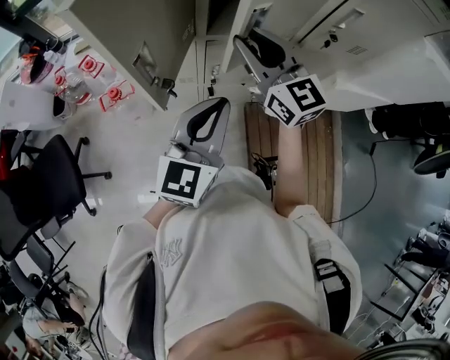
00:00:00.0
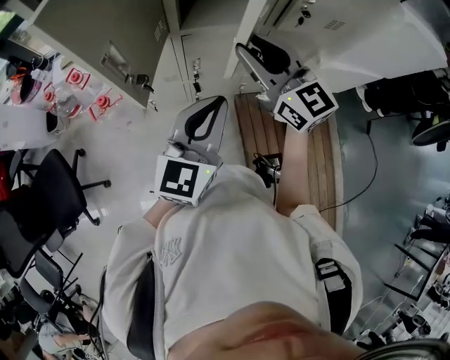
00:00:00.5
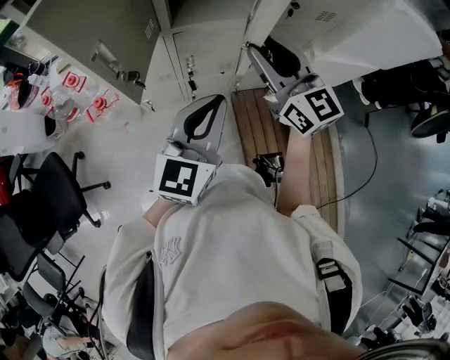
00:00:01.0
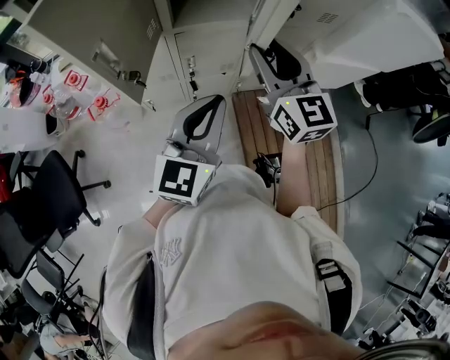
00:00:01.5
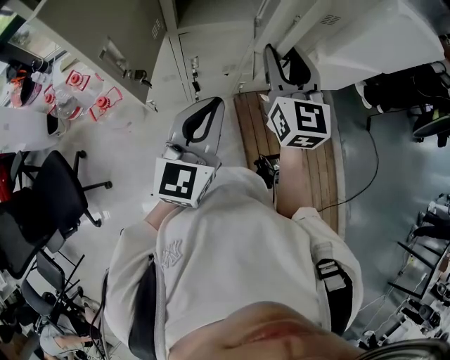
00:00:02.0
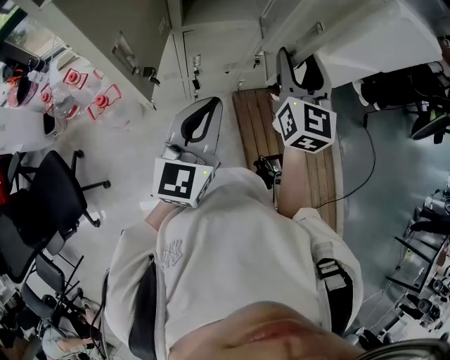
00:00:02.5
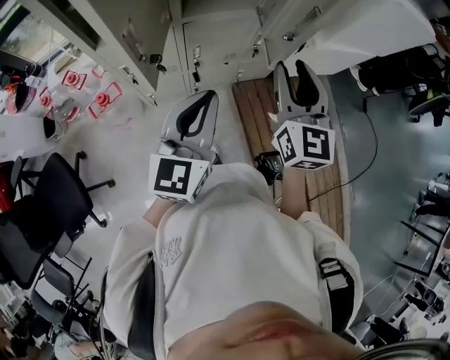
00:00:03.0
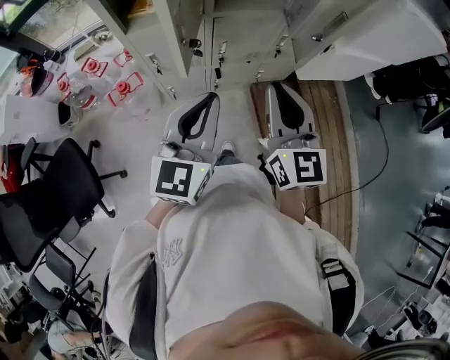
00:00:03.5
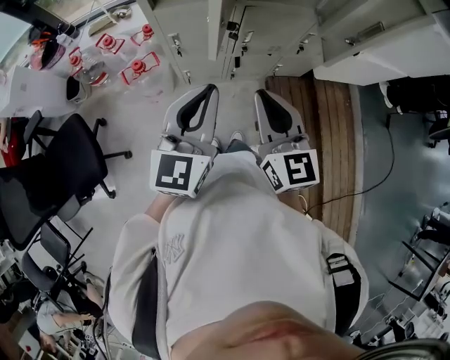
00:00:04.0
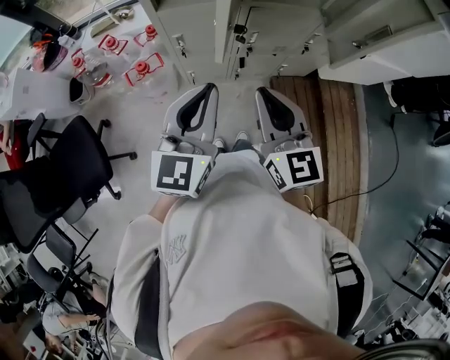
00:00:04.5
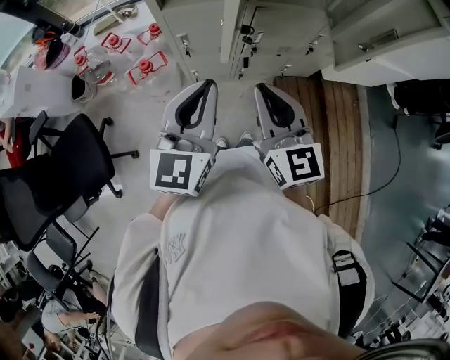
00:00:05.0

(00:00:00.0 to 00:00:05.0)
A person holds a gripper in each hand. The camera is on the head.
00:00:00.0 - 00:00:02.5: The right gripper is displaced to the right by some 15 cm, turns by roughly 40 degrees, and opens up.
00:00:02.5 - 00:00:05.0: The left gripper moves to the left, roughly 20 cm. Meanwhile the right gripper is displaced to the left and backward by some 30 cm, swivels roughly 30 degrees, and closes.

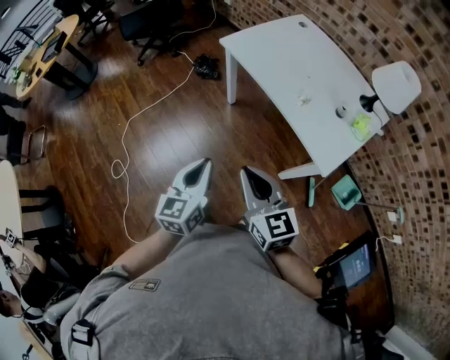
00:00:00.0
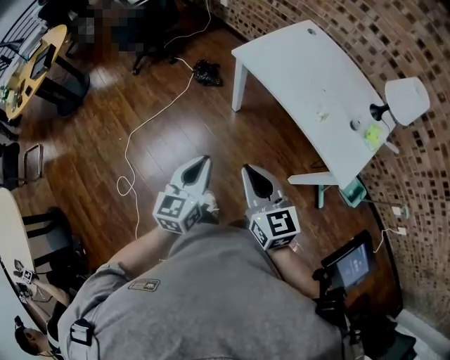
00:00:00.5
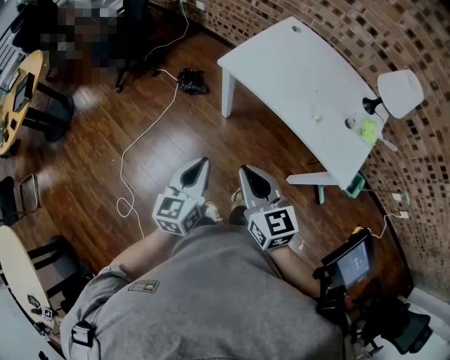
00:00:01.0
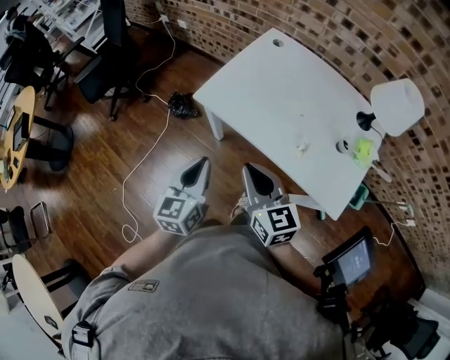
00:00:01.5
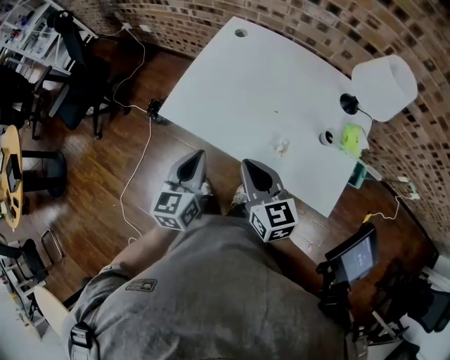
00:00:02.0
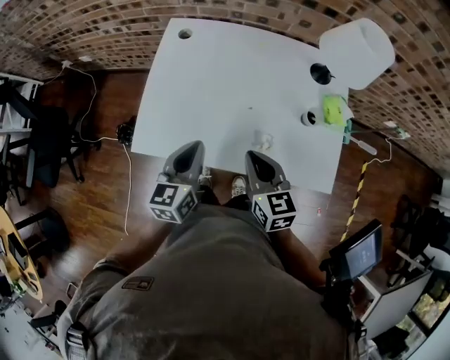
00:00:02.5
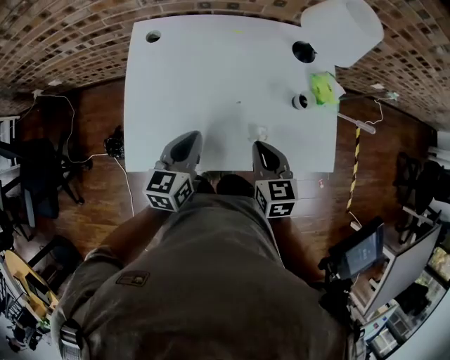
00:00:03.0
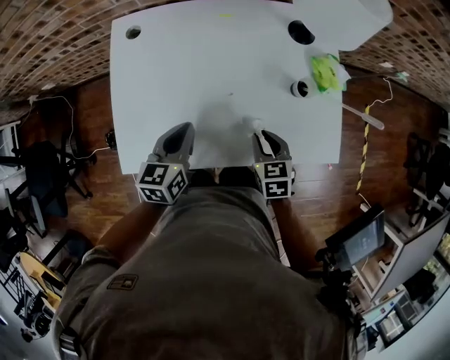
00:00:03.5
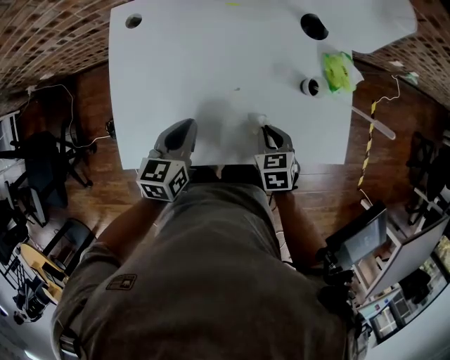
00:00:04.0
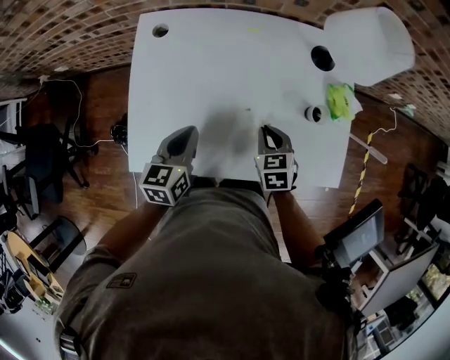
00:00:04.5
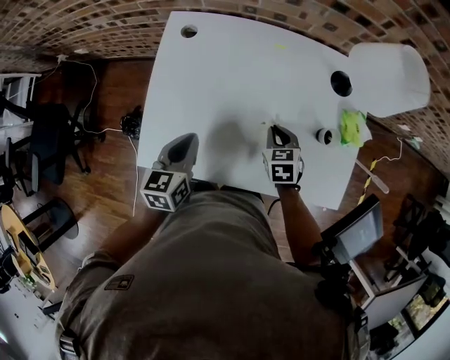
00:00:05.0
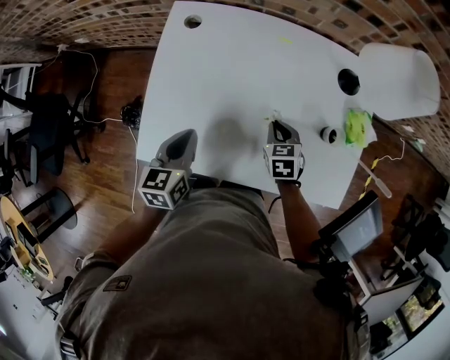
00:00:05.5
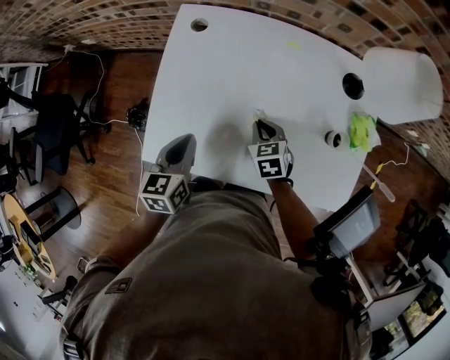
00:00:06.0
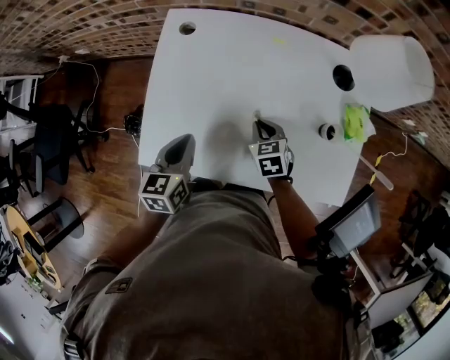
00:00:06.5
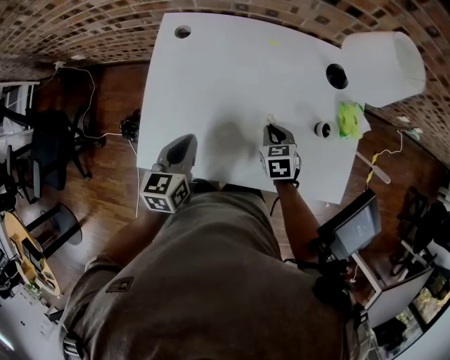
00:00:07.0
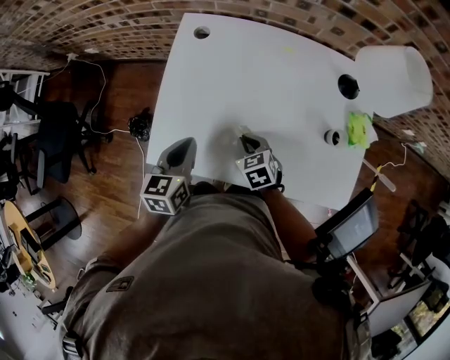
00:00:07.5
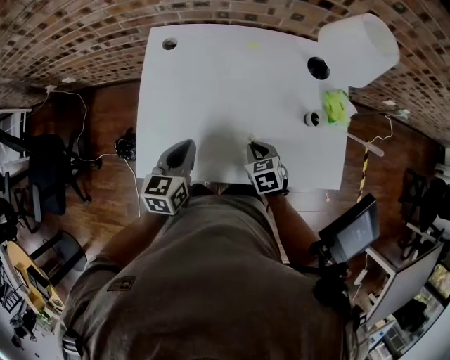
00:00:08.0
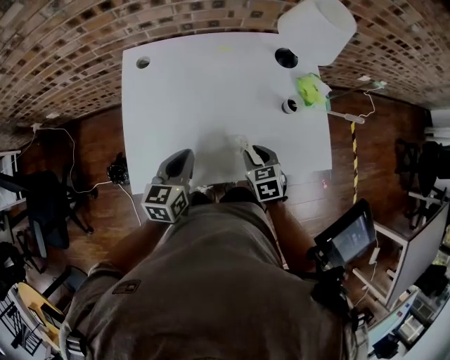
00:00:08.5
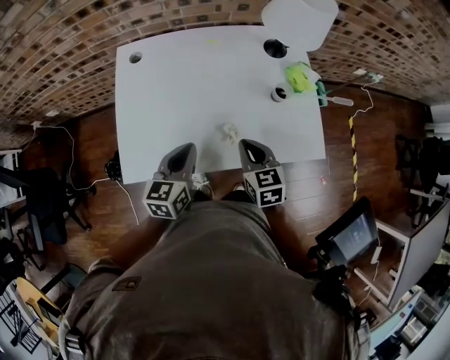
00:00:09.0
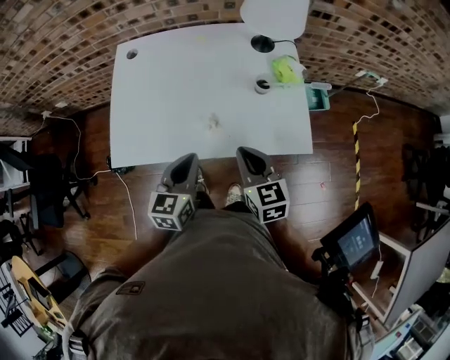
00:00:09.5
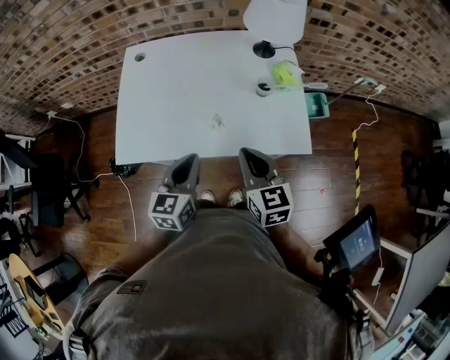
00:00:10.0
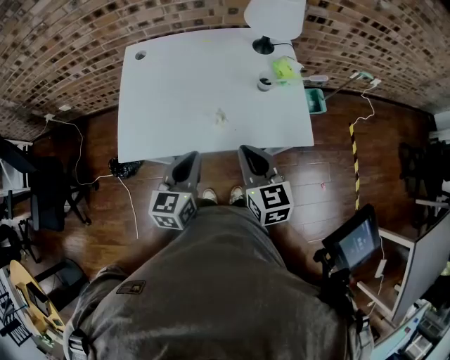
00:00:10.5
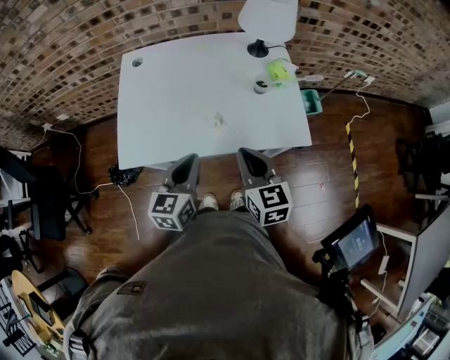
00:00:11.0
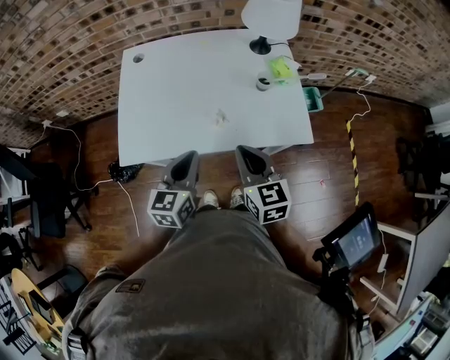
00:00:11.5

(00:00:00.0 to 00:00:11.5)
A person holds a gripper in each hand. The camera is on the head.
00:00:00.0 - 00:00:02.0: Both grippers move forward, some 35 cm. The right gripper swivels roughly 30 degrees. Meanwhile the left gripper turns by roughly 20 degrees.
00:00:02.0 - 00:00:04.0: The left gripper changes place by roughly 20 cm, and rotates roughly 40 degrees. Meanwhile the right gripper heads downward, covering approximately 20 cm, and tips its fingers downward by about 40 degrees.
00:00:04.0 - 00:00:06.0: The right gripper is displaced to the left and forward by some 15 cm. Meanwhile the left gripper goes roughly 10 cm to the left.
00:00:06.0 - 00:00:07.5: The right gripper moves to the left, about 5 cm.
00:00:07.5 - 00:00:09.5: The right gripper changes place by about 30 cm, turns by some 30 degrees, and opens, then closes again. The left gripper changes place by about 25 cm.
00:00:09.5 - 00:00:11.5: The left gripper shifts by roughly 5 cm. Meanwhile the right gripper ends up about 5 cm from where it was.

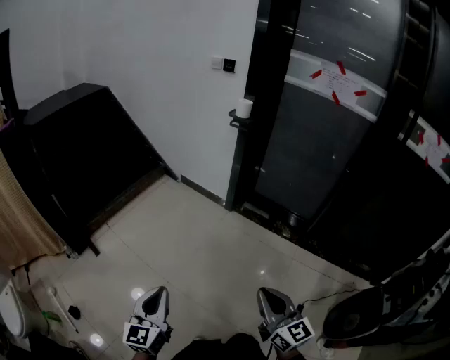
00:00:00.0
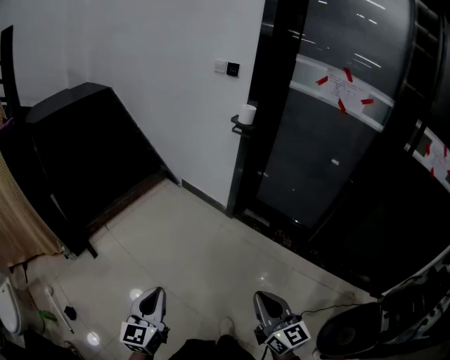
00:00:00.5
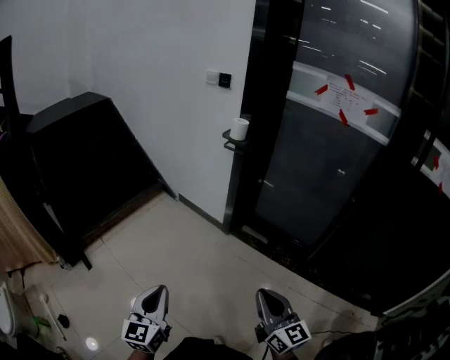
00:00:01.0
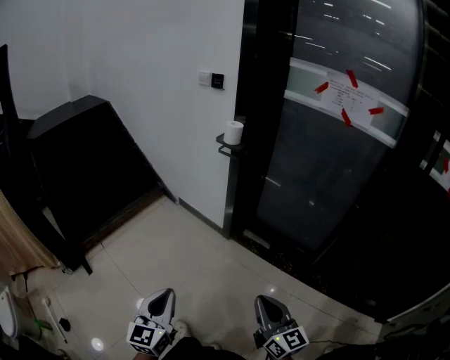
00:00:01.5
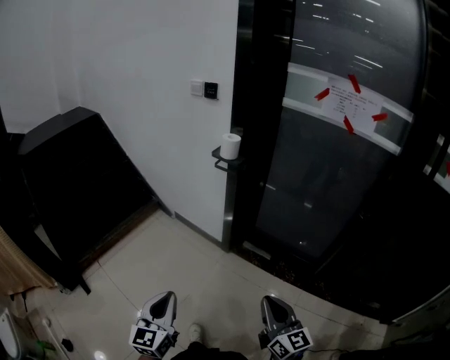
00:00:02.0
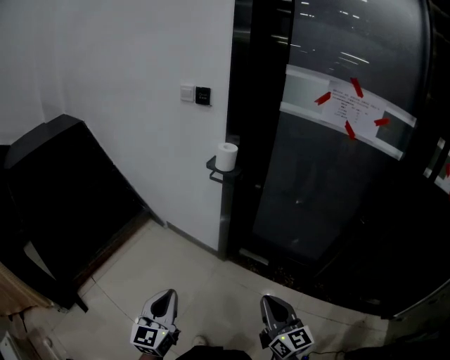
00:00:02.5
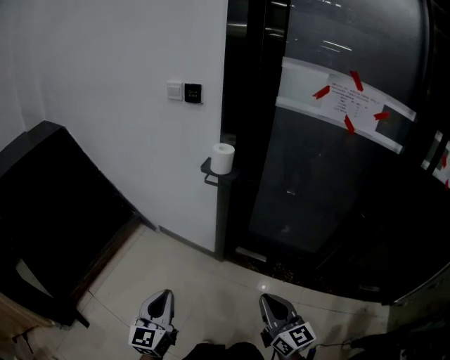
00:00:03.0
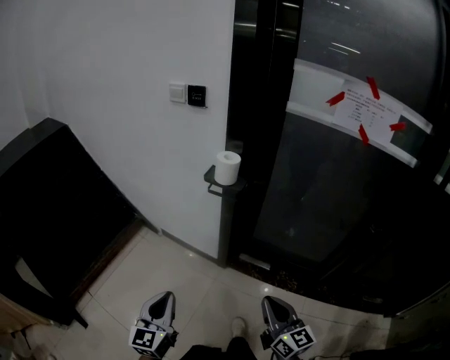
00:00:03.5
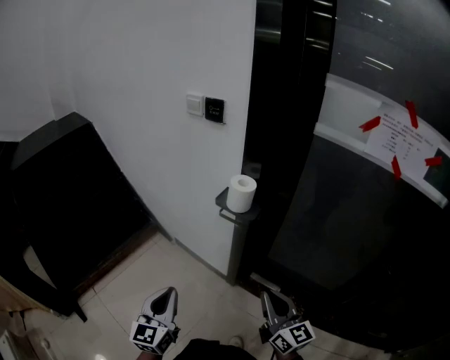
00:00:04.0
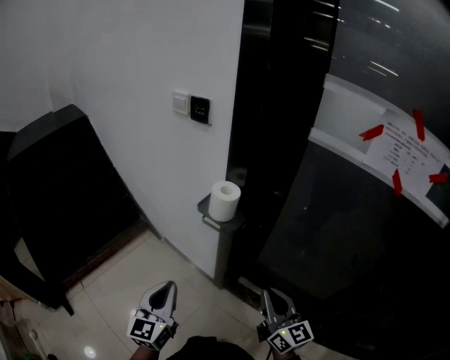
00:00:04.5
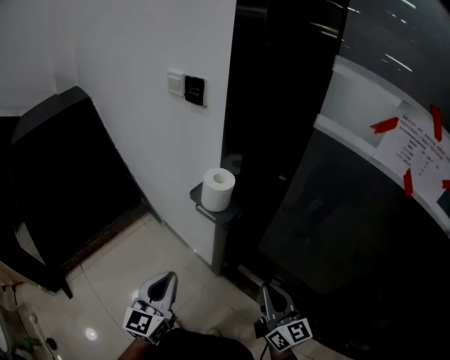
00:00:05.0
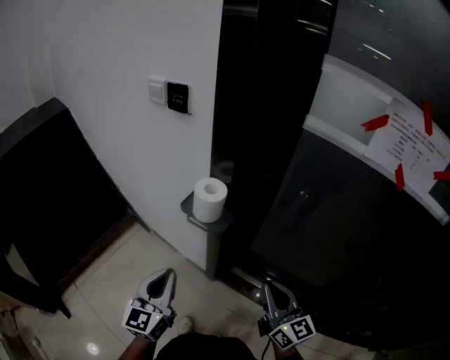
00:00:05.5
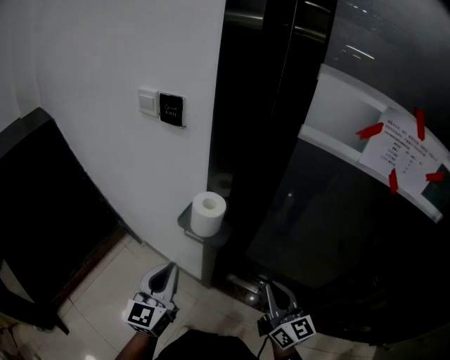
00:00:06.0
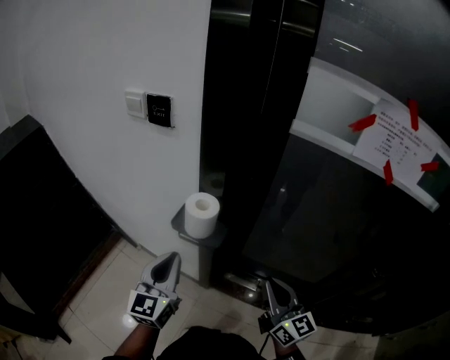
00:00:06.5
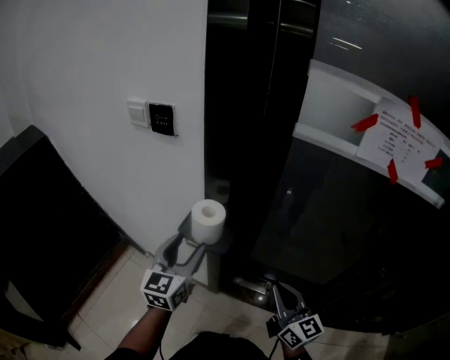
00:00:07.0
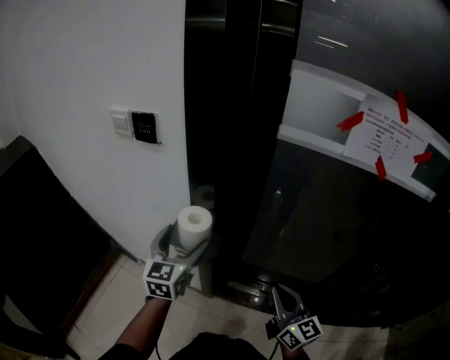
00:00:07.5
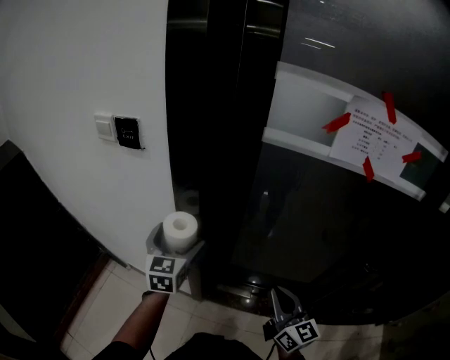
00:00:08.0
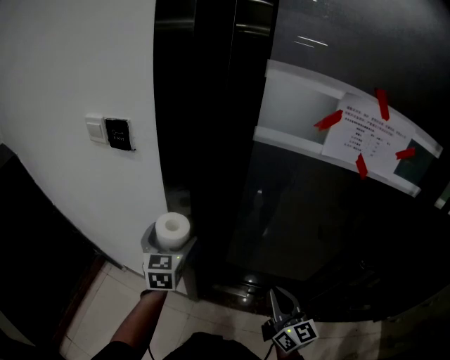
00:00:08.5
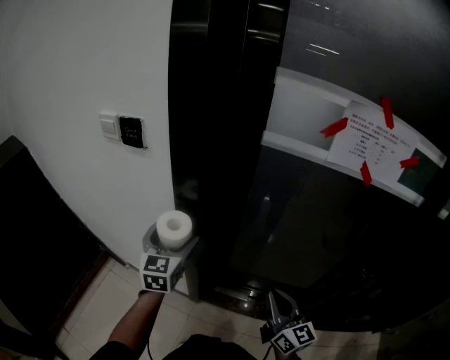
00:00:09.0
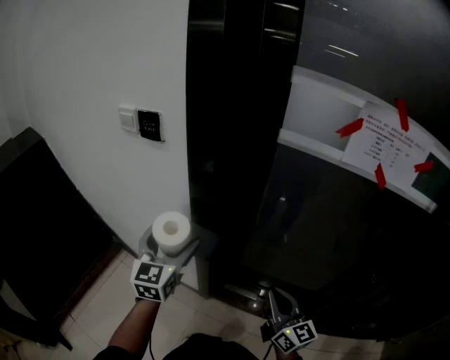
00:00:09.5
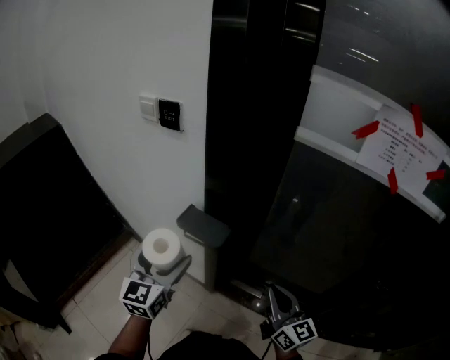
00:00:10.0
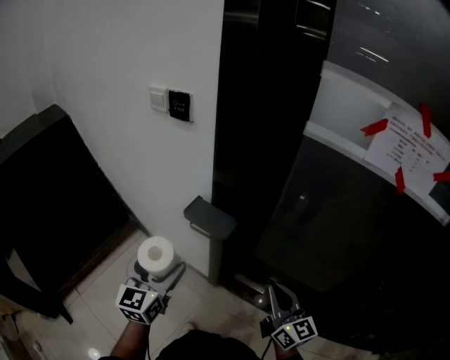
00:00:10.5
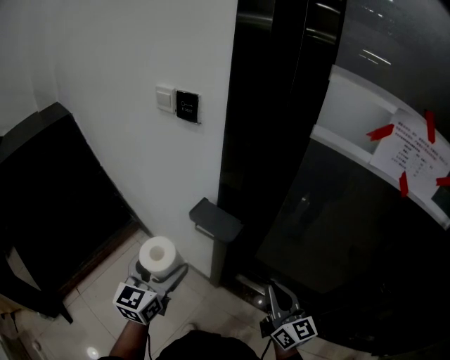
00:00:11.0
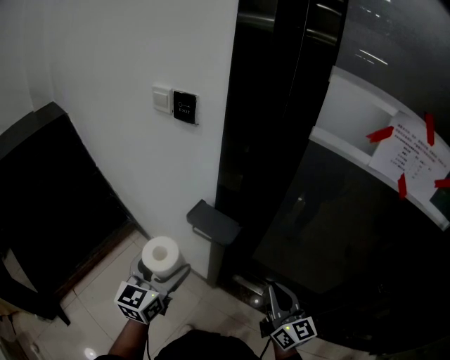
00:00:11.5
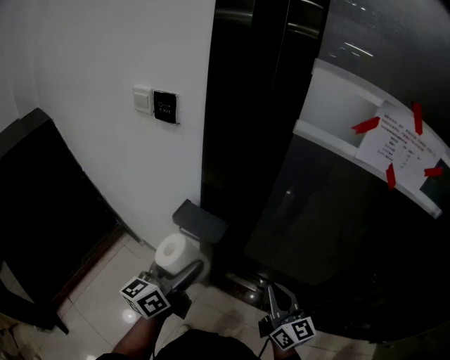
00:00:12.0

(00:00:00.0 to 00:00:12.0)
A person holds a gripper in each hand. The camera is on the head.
00:00:00.0 - 00:00:02.0: Both grippers move forward and to the right, about 35 cm.
00:00:02.0 - 00:00:04.0: The grippers both shift forward by some 35 cm.
00:00:04.0 - 00:00:06.0: The grippers both shift forward and to the right by some 20 cm.
00:00:06.0 - 00:00:08.0: The left gripper moves forward and to the right, some 20 cm, and opens. Meanwhile the right gripper moves to the right, roughly 5 cm.
00:00:08.0 - 00:00:10.0: The left gripper is displaced backward and to the left by roughly 15 cm.
00:00:10.0 - 00:00:12.0: The left gripper rotates about 40 degrees.
